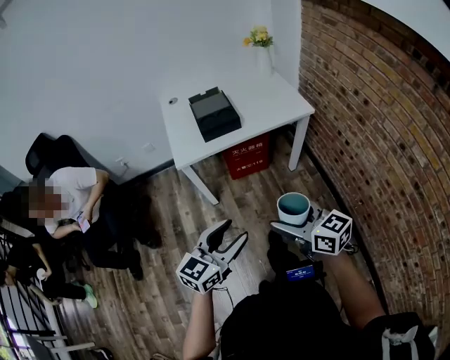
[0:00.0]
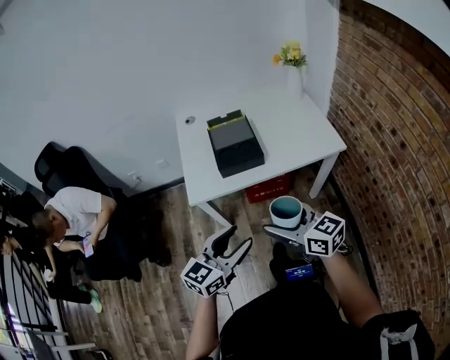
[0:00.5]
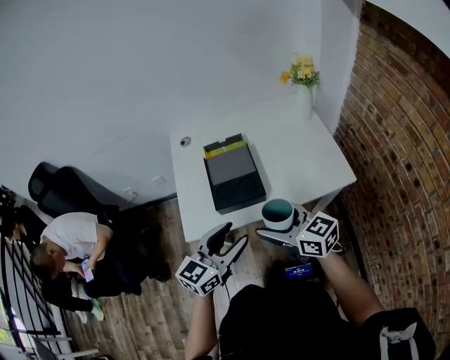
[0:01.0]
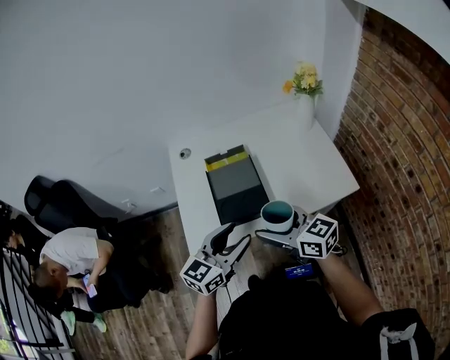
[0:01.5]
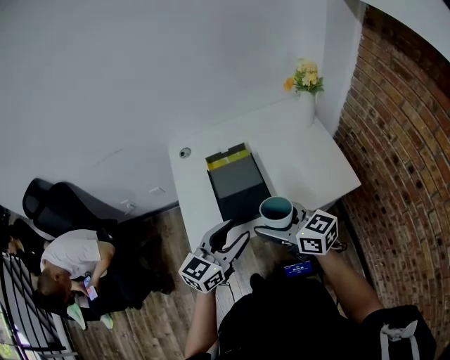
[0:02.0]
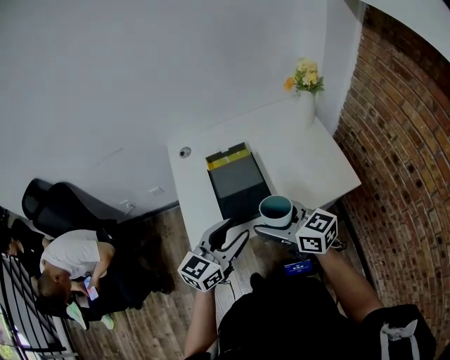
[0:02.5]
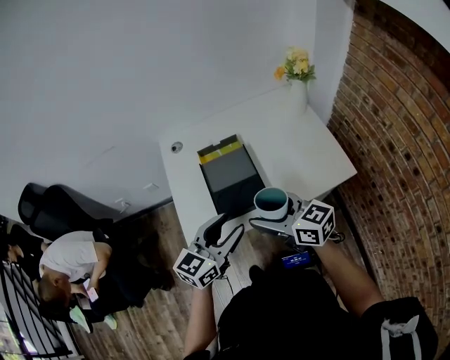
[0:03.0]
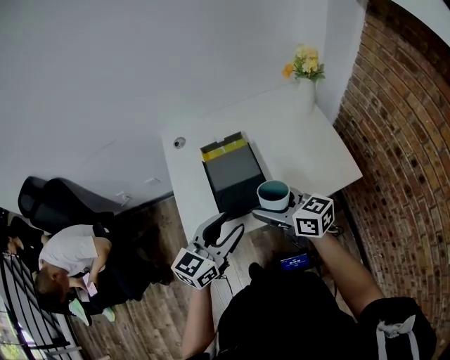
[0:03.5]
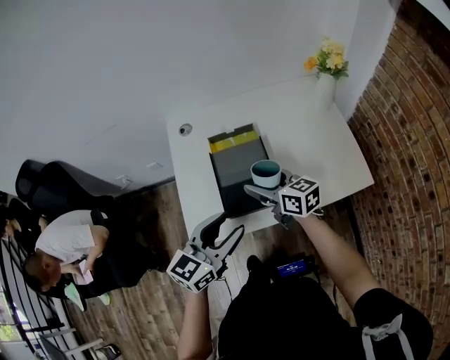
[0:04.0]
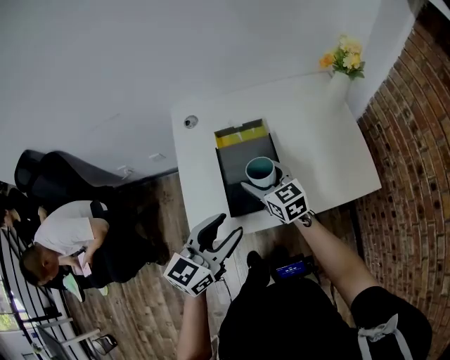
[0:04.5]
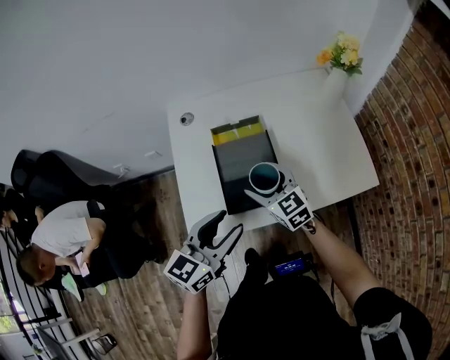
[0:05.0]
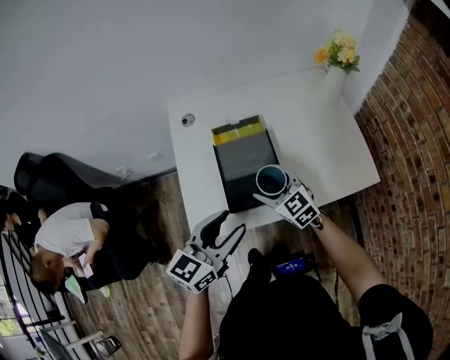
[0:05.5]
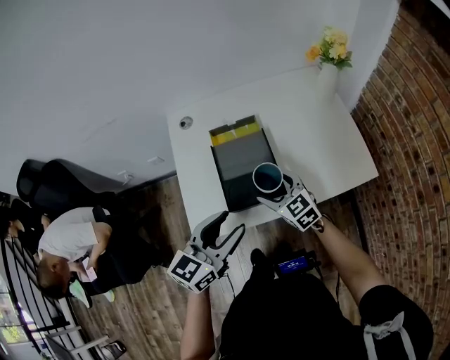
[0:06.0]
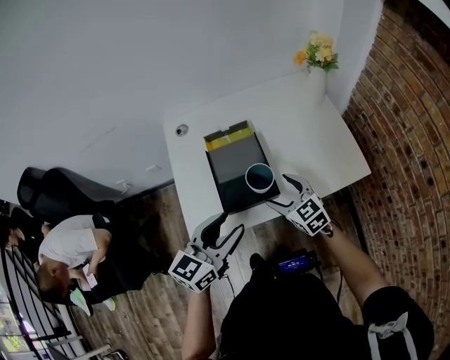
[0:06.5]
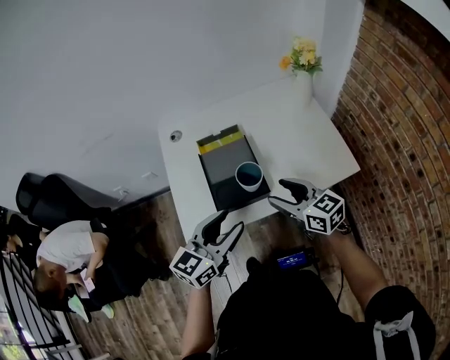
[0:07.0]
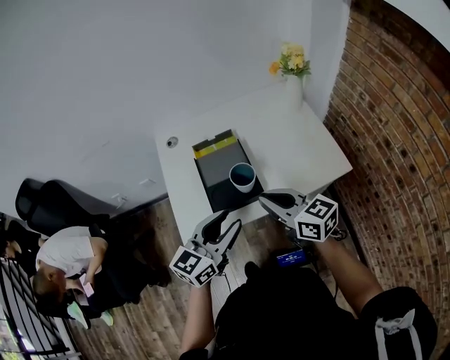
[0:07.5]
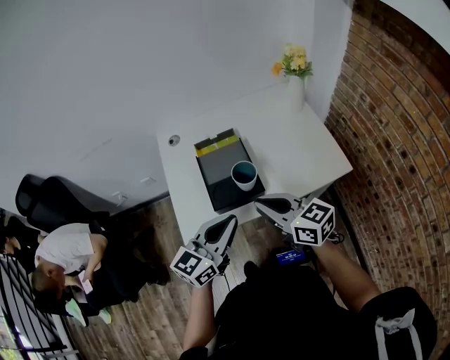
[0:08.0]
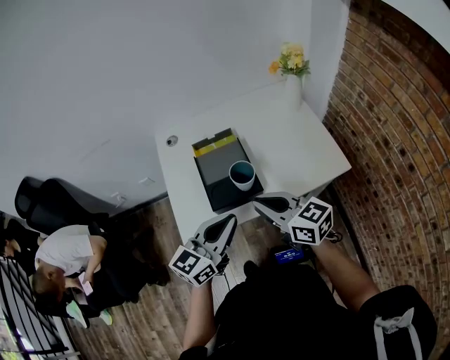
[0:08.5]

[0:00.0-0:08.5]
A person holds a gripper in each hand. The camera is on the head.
0:00.0 to 0:02.0: Both grippers are carried forward, about 40 cm.
0:02.0 to 0:04.0: The right gripper travels forward and downward by about 15 cm.
0:04.0 to 0:06.5: The right gripper travels backward, downward and to the right by approximately 10 cm, and swivels about 30 degrees.
0:06.5 to 0:08.5: The left gripper ends up about 5 cm from where it was, and closes its fingers, while the right gripper shifts some 15 cm upward and backward, swivels roughly 30 degrees, and closes its fingers.

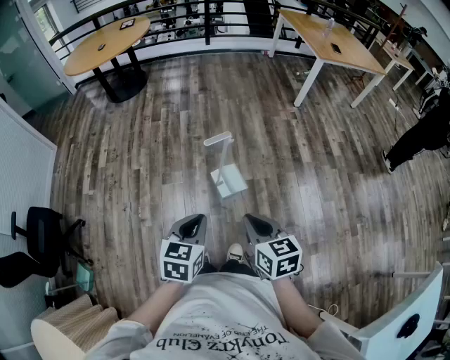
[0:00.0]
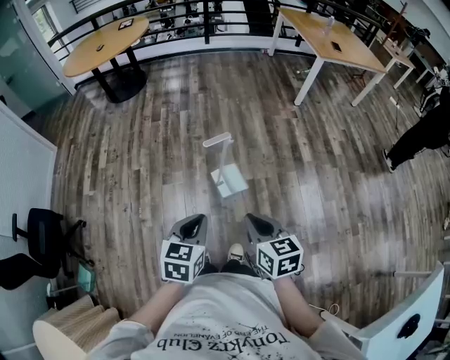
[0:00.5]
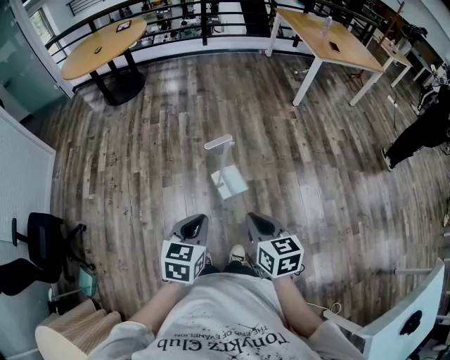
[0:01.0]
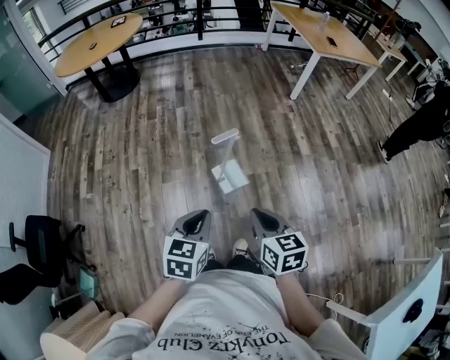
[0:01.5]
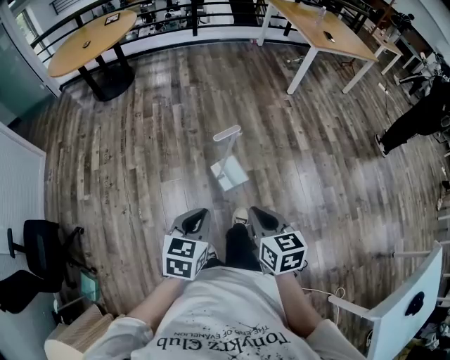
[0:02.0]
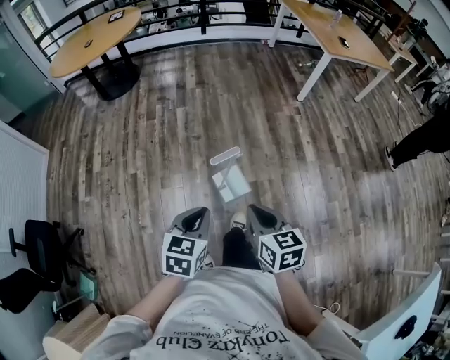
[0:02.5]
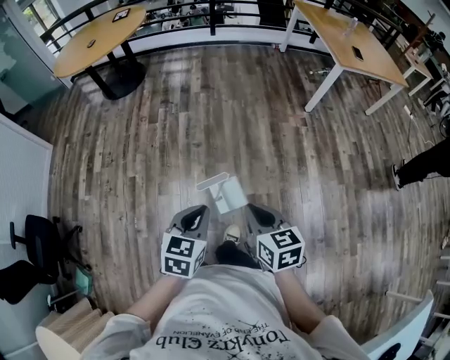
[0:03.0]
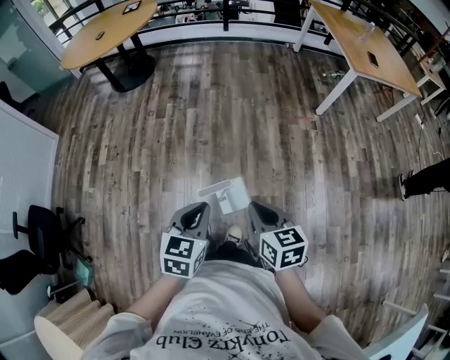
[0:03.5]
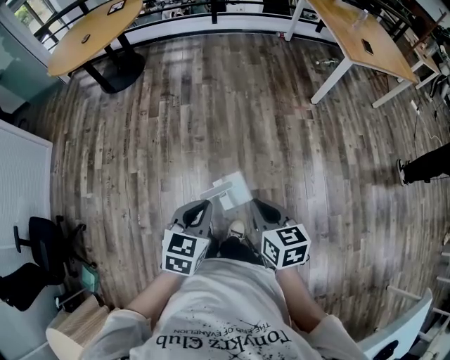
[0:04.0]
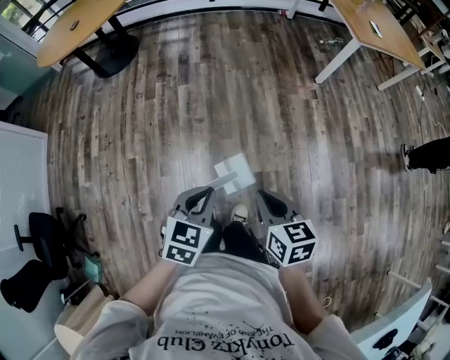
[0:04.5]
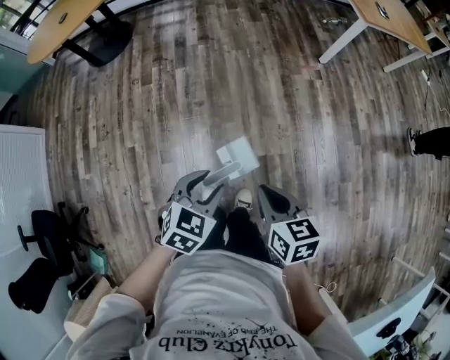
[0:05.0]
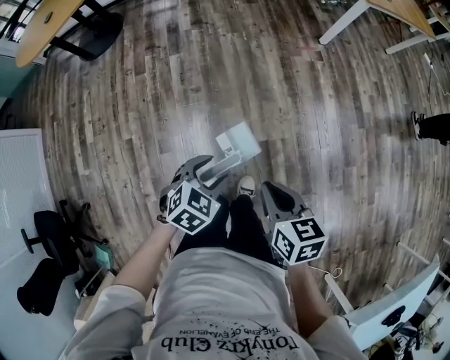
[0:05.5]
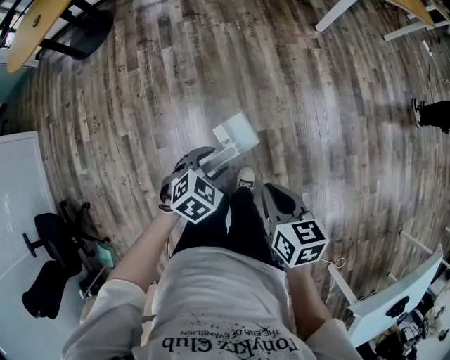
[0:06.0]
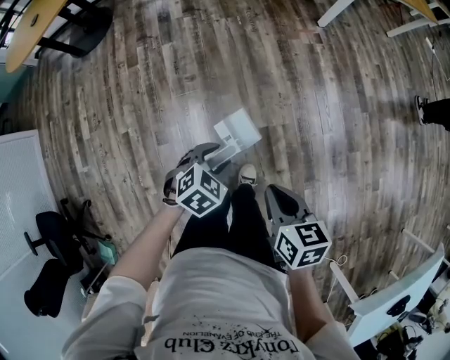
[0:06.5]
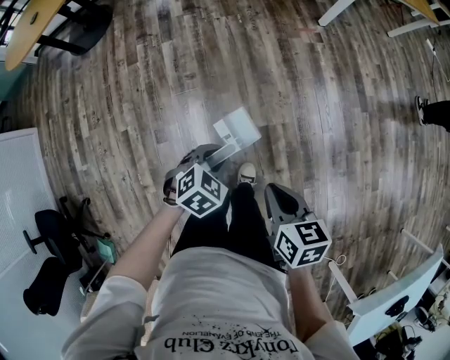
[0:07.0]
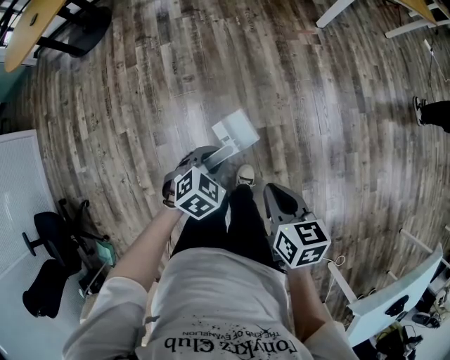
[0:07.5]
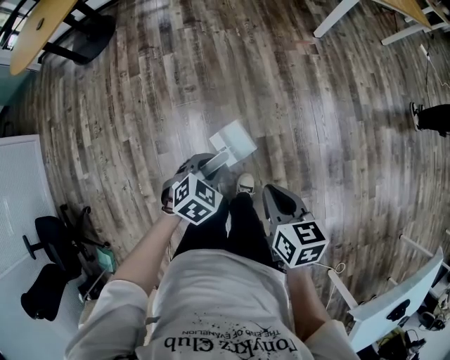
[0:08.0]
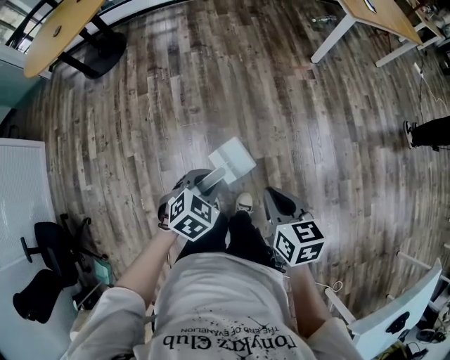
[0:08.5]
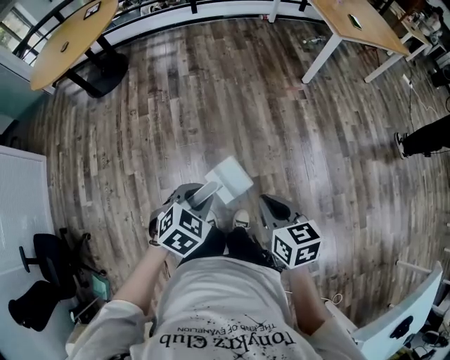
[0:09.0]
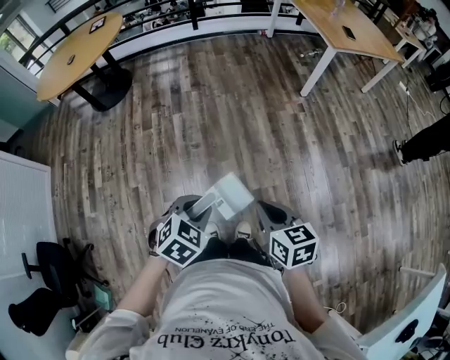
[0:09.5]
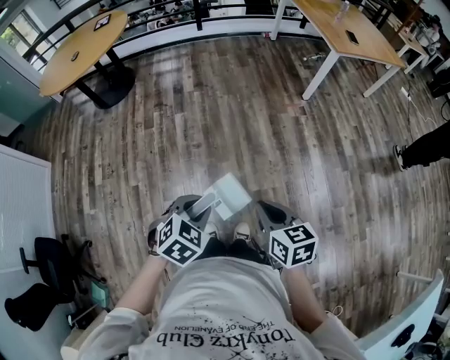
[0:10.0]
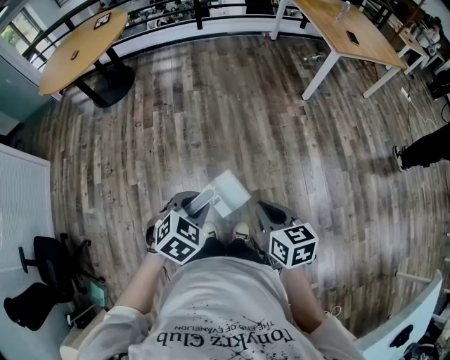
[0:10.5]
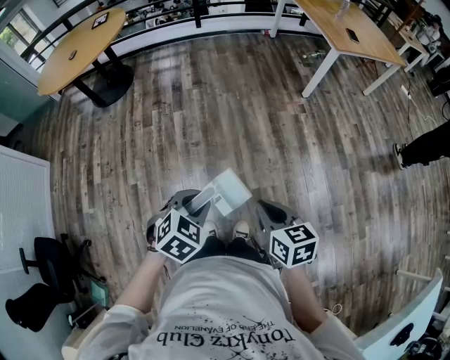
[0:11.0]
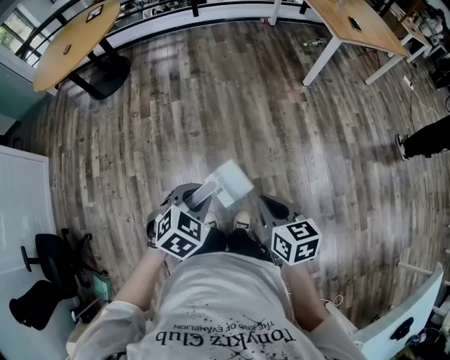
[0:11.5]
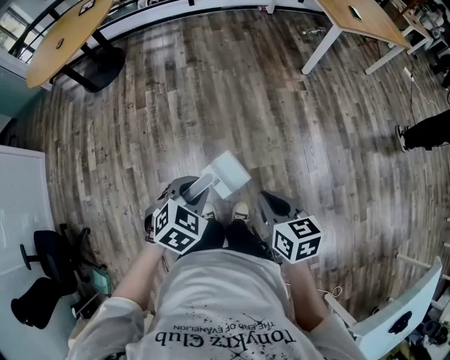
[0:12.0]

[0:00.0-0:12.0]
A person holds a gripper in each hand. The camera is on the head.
0:00.0 to 0:02.0: The grippers both shift to the left by some 5 cm.
0:02.0 to 0:04.0: Both grippers move forward, about 30 cm.
0:04.0 to 0:06.0: The left gripper heads downward, covering some 20 cm, rotates about 40 degrees, and opens its fingers. Meanwhile the right gripper is displaced downward by roughly 10 cm.
0:06.0 to 0:08.0: The left gripper closes up.
0:08.0 to 0:10.0: The right gripper moves upward, roughly 10 cm, while the left gripper goes roughly 20 cm upward.
0:10.0 to 0:12.0: The grippers make only small movements.

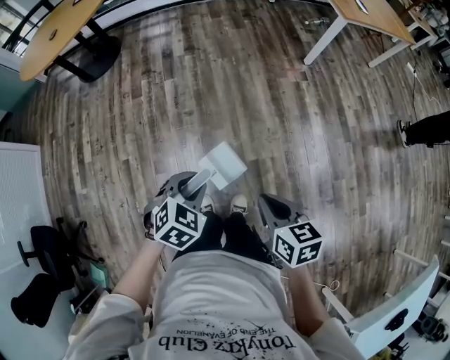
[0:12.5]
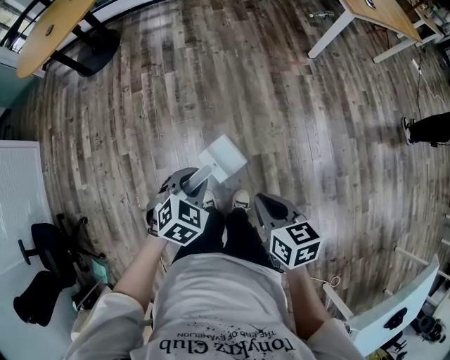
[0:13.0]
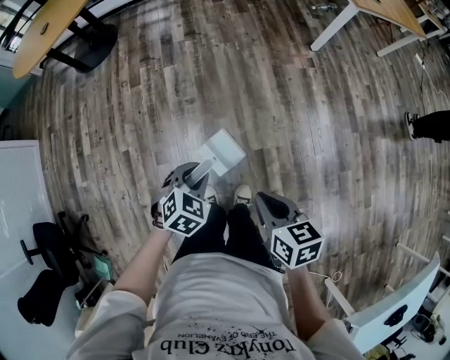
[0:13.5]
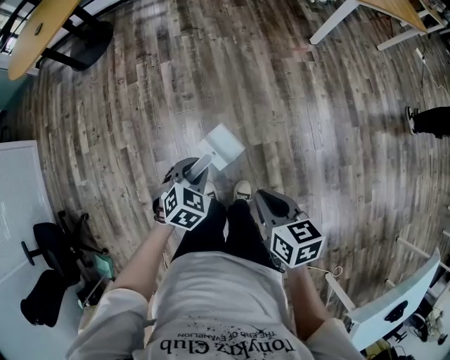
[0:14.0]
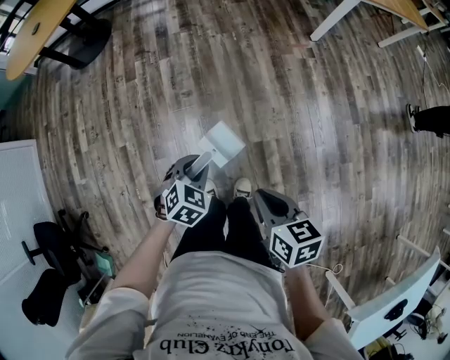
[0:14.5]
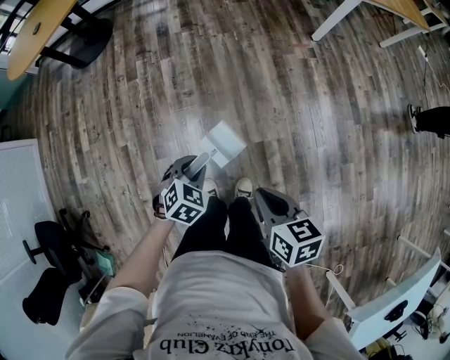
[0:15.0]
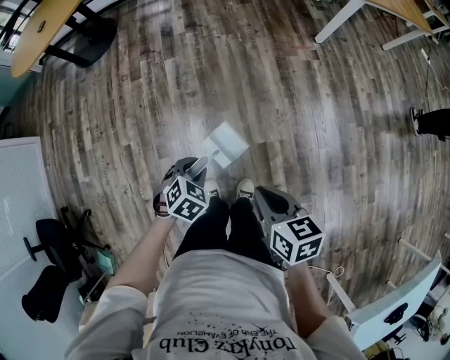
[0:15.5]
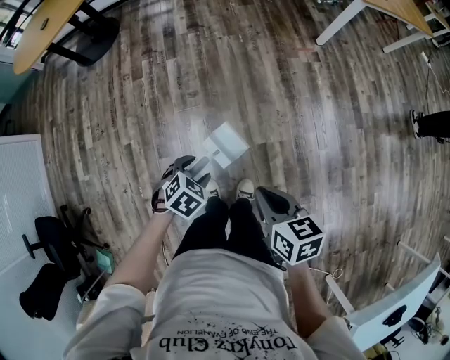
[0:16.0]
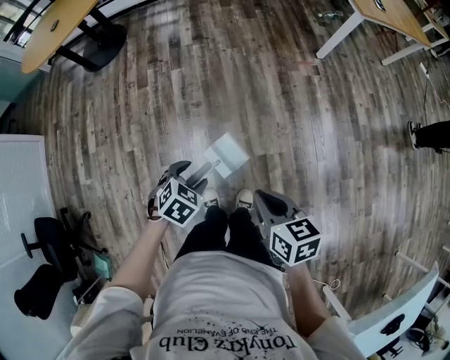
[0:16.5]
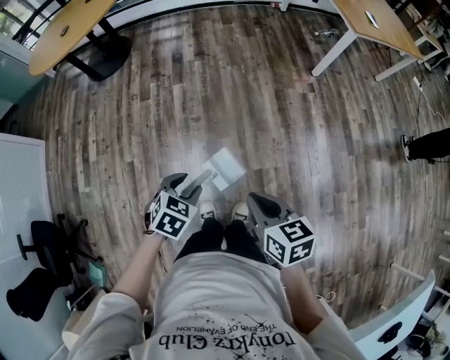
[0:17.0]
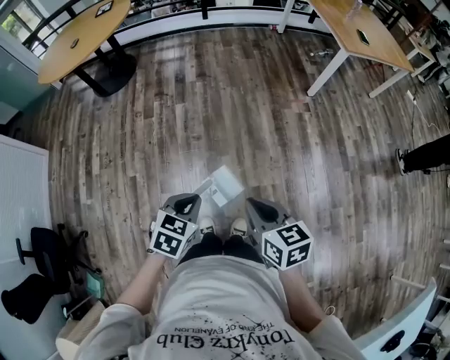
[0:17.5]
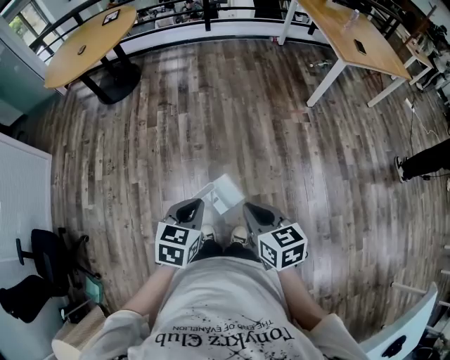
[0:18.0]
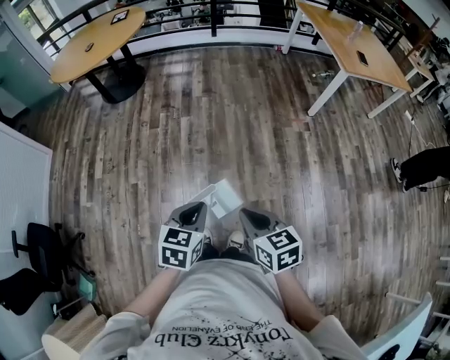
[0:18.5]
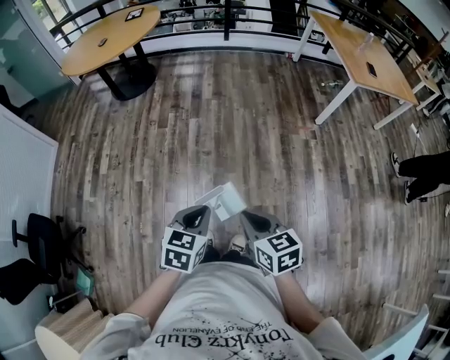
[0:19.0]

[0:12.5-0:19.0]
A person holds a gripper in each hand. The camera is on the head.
0:12.5 to 0:14.5: The right gripper shifts by roughly 5 cm, while the left gripper goes roughly 15 cm downward and forward.
0:14.5 to 0:17.0: Both grippers travel together upward, roughly 5 cm. The left gripper opens up.
0:17.0 to 0:19.0: The right gripper changes place by some 10 cm; the left gripper is displaced upward and backward by approximately 15 cm, turns by about 30 degrees, and closes up.
